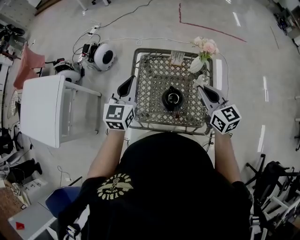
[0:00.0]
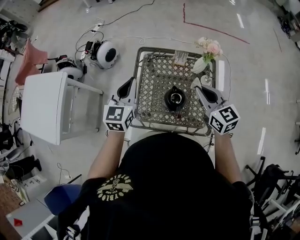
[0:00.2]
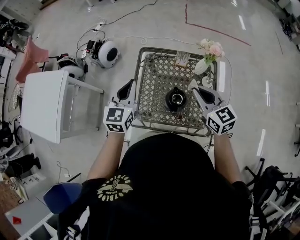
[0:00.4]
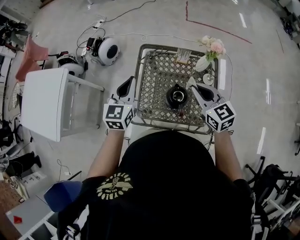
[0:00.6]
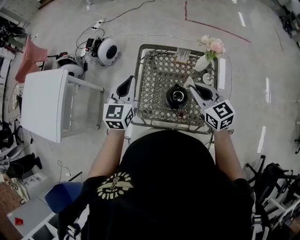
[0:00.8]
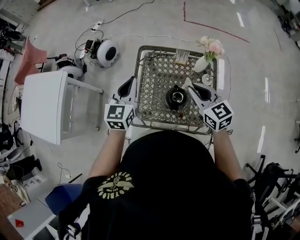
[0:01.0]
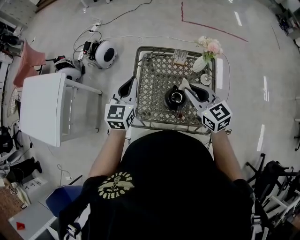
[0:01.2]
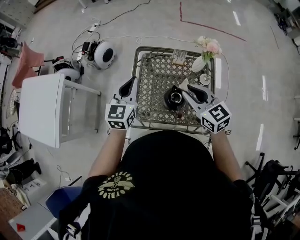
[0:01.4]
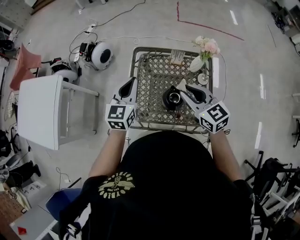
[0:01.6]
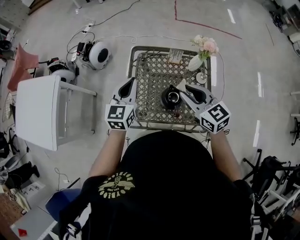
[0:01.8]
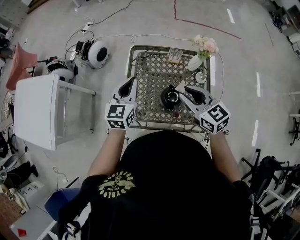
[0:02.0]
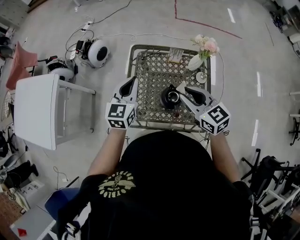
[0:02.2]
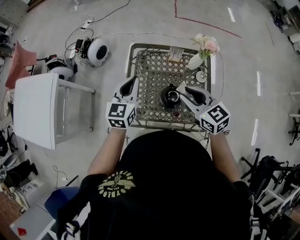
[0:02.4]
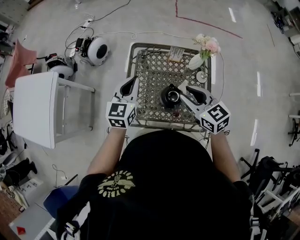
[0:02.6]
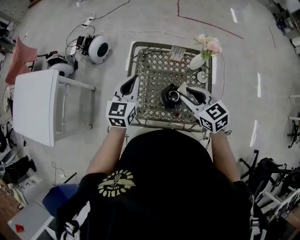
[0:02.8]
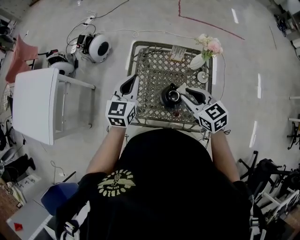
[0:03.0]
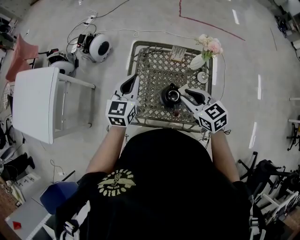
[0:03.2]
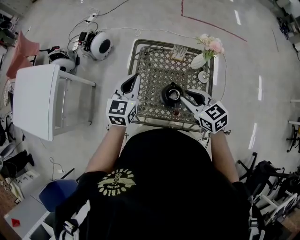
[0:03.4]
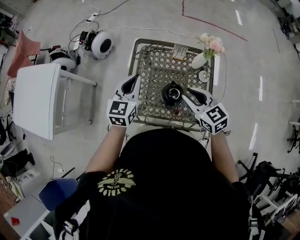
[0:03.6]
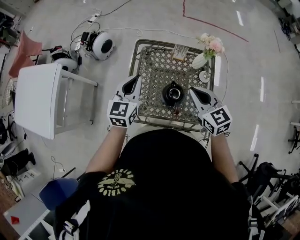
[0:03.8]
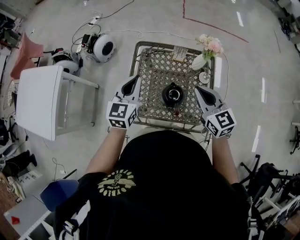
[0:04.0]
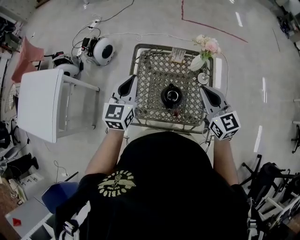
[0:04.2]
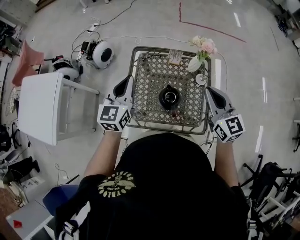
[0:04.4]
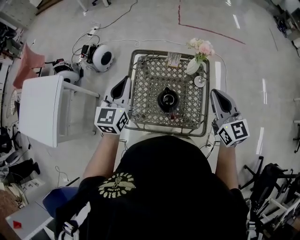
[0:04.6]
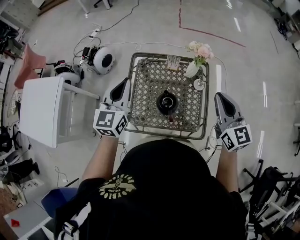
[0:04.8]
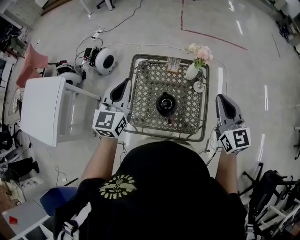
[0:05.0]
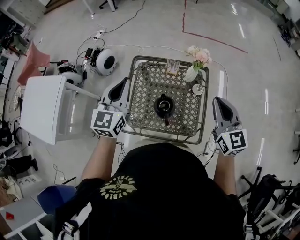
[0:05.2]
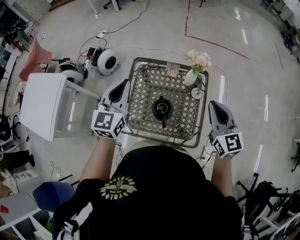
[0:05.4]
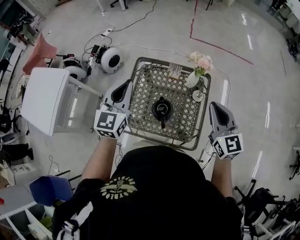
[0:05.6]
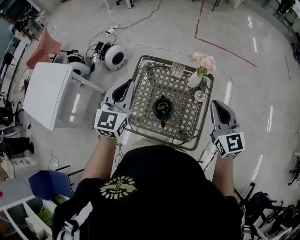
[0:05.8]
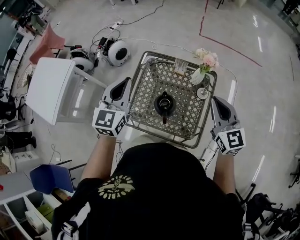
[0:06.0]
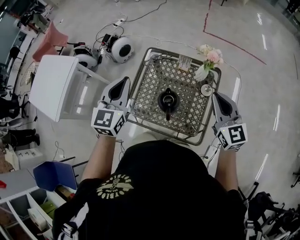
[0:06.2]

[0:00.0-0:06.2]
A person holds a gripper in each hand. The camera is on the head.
0:00.0 to 0:01.6: The right gripper is displaced to the left by some 10 cm.
0:01.6 to 0:03.2: The right gripper ends up roughly 5 cm from where it was.
0:03.2 to 0:04.6: The right gripper heads to the right and upward, covering approximately 15 cm, rotates roughly 30 degrees, and closes, while the left gripper travels upward by roughly 10 cm.
0:04.6 to 0:06.2: The left gripper ends up roughly 5 cm from where it was.

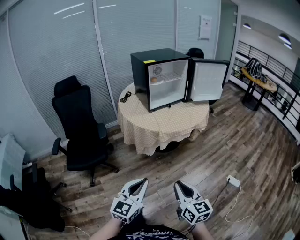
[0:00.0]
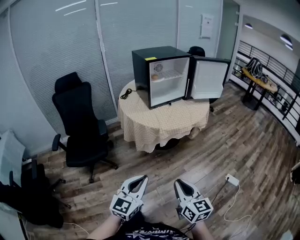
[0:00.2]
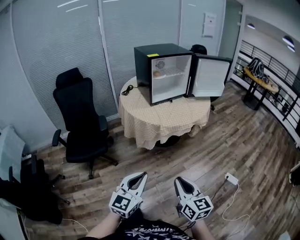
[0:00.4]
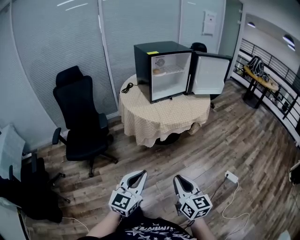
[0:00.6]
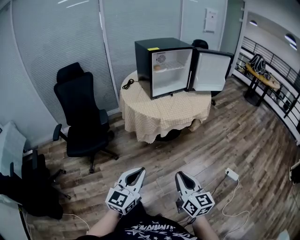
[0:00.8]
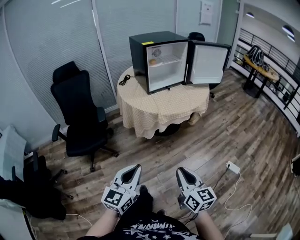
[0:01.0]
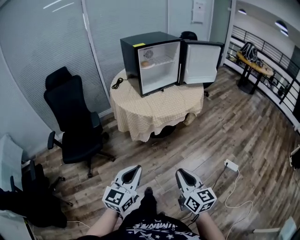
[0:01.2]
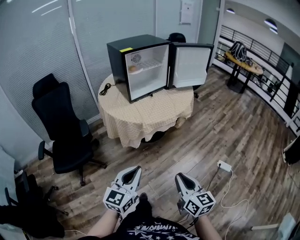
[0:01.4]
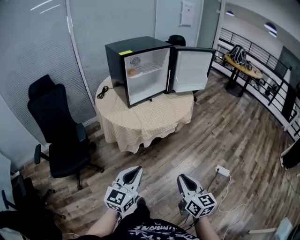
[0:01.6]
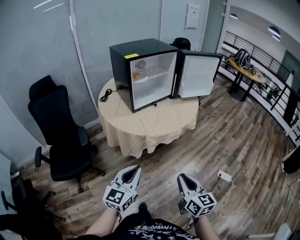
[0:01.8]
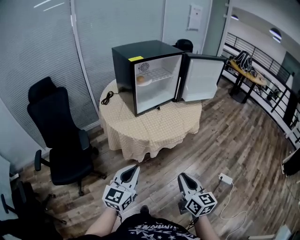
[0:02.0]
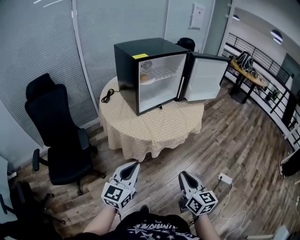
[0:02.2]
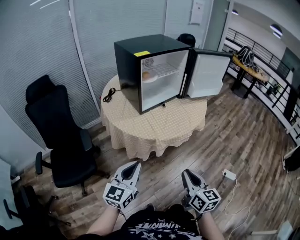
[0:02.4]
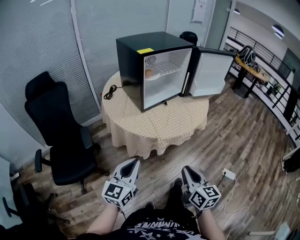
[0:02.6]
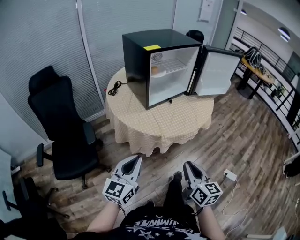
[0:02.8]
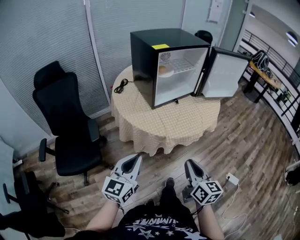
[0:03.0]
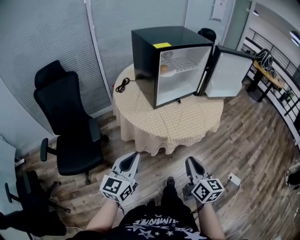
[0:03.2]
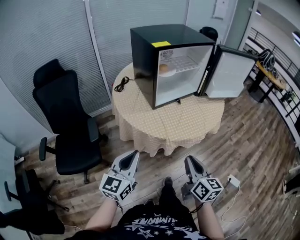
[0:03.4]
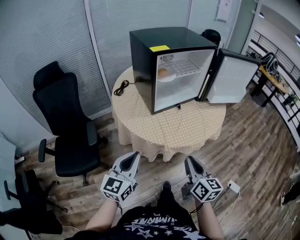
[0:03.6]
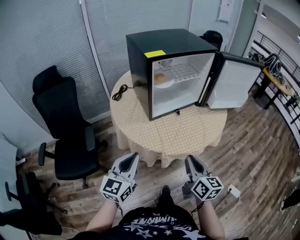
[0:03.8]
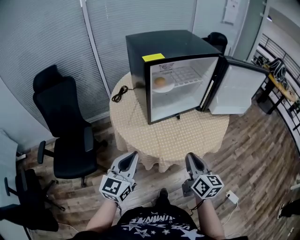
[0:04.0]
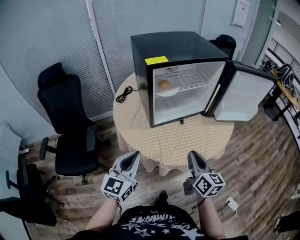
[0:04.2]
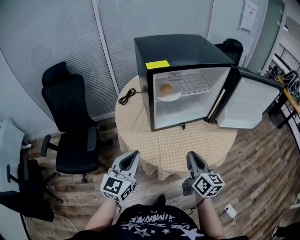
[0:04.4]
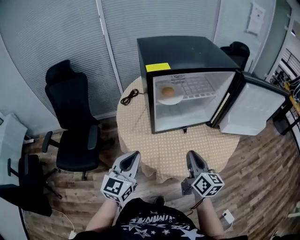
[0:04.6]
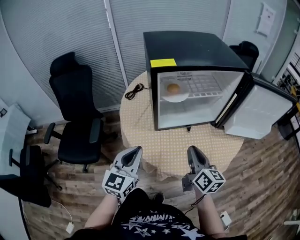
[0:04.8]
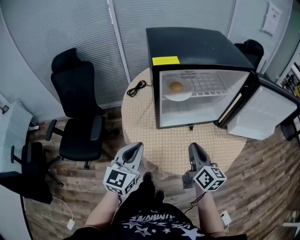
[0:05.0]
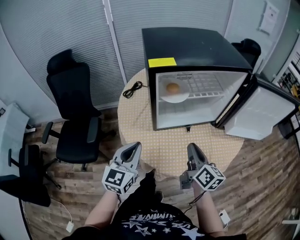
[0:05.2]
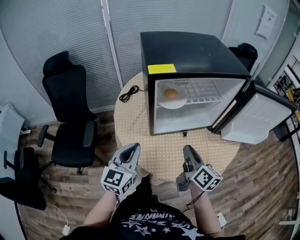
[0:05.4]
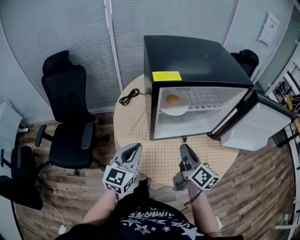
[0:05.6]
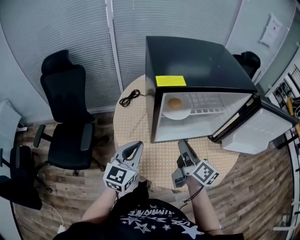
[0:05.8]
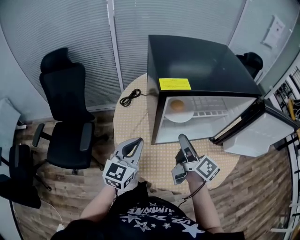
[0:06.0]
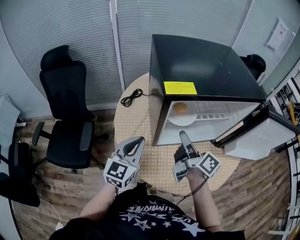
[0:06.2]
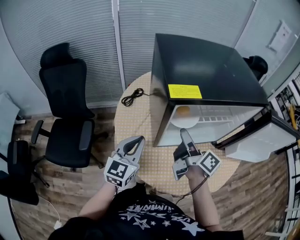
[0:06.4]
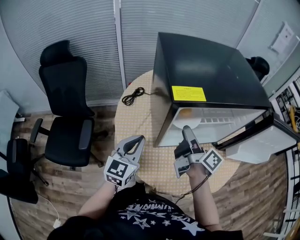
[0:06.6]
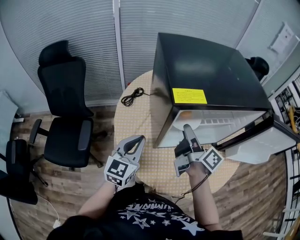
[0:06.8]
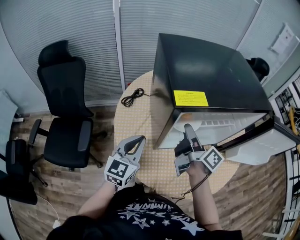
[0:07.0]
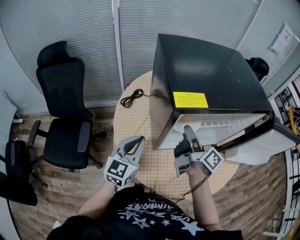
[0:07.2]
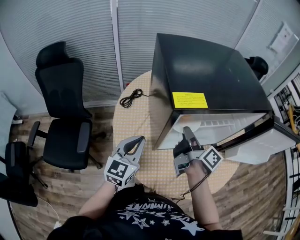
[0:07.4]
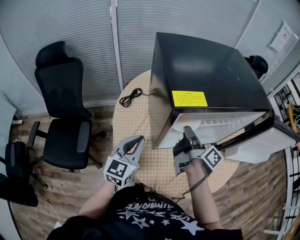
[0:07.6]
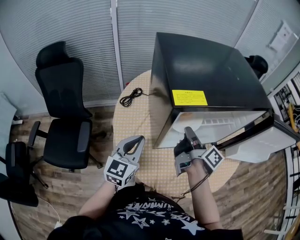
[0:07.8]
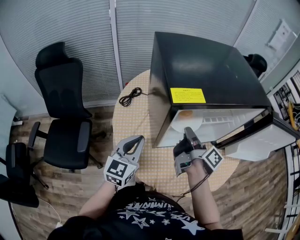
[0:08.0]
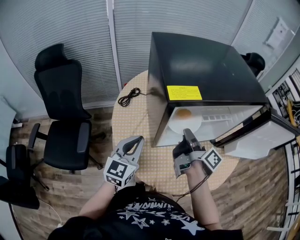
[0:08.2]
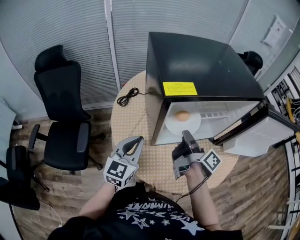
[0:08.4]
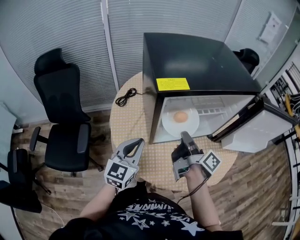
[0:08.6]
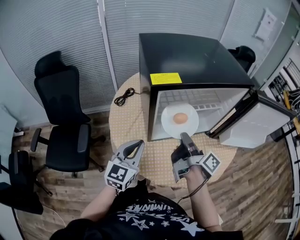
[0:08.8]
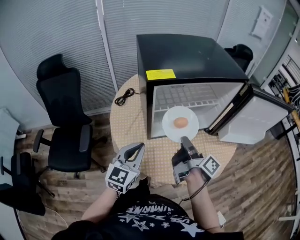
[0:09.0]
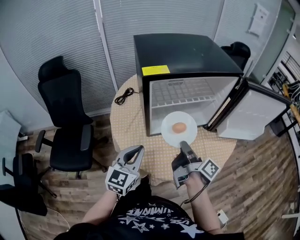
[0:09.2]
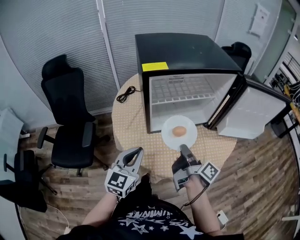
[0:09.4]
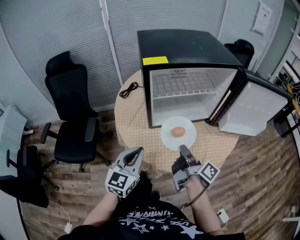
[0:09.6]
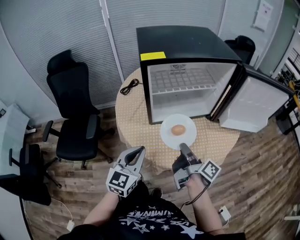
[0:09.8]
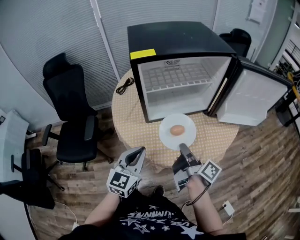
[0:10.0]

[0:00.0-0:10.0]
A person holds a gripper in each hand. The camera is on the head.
0:00.0 to 0:01.4: The left gripper heads forward, covering some 5 cm; the right gripper travels to the right by roughly 5 cm.
0:01.4 to 0:02.8: The grippers both shift forward and to the left by about 25 cm.
0:02.8 to 0:04.2: The grippers both shift forward by roughly 25 cm.
0:04.2 to 0:05.8: Both grippers move forward, approximately 20 cm. The right gripper swivels approximately 30 degrees.
0:05.8 to 0:07.2: Both grippers move forward, some 10 cm. The right gripper rotates about 20 degrees, and opens up.
0:07.2 to 0:08.6: The right gripper heads backward, covering some 5 cm, and closes up. The left gripper changes place by about 5 cm.
0:08.6 to 0:10.0: The right gripper is displaced backward by some 20 cm. Meanwhile the left gripper goes about 15 cm backward and to the right.

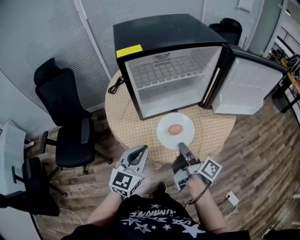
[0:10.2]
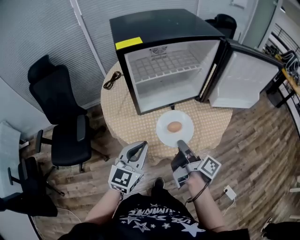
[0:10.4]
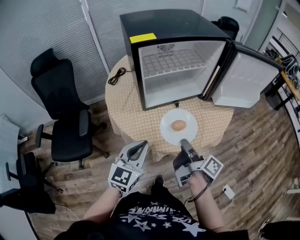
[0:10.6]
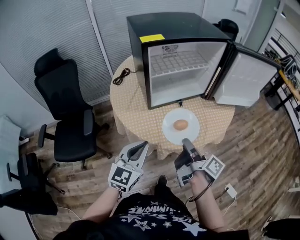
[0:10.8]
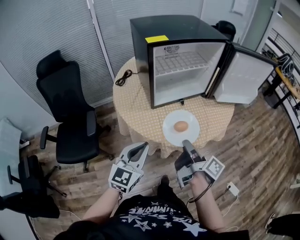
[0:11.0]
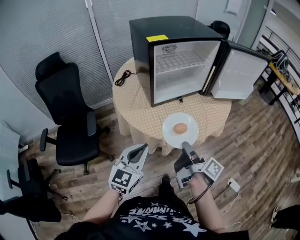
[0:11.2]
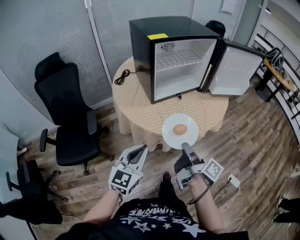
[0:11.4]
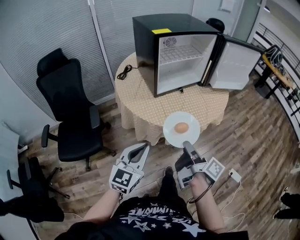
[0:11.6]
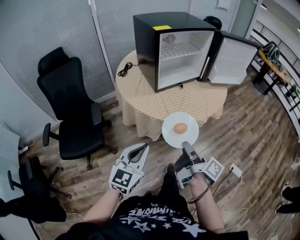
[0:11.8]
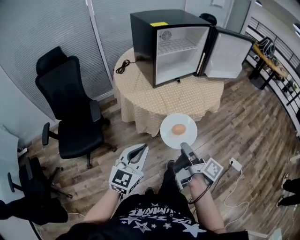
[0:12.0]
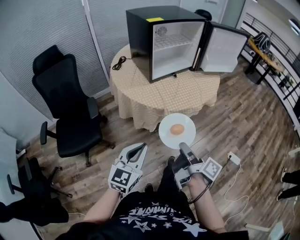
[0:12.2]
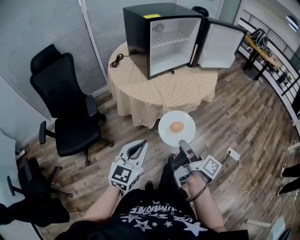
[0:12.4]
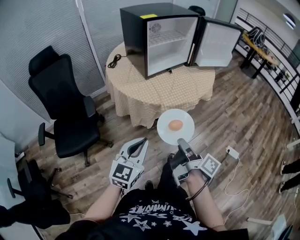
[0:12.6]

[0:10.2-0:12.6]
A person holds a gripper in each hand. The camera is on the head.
0:10.2 to 0:11.4: The two grippers go approximately 20 cm backward and to the left.
0:11.4 to 0:12.6: Both grippers move backward, some 15 cm.

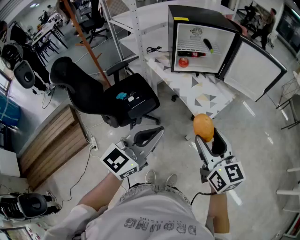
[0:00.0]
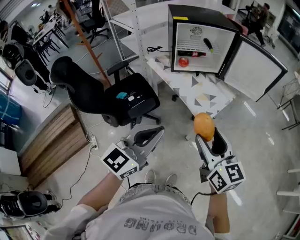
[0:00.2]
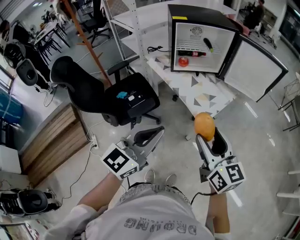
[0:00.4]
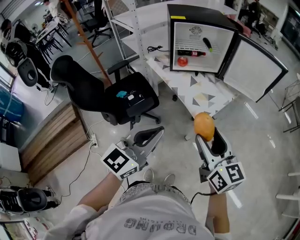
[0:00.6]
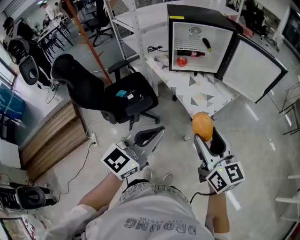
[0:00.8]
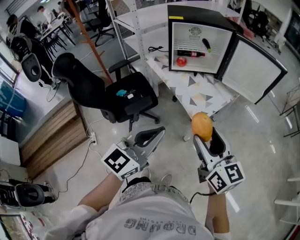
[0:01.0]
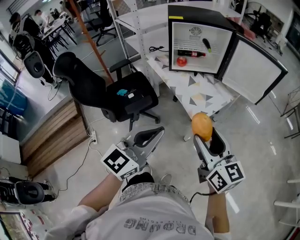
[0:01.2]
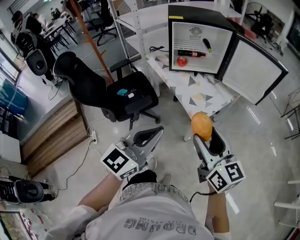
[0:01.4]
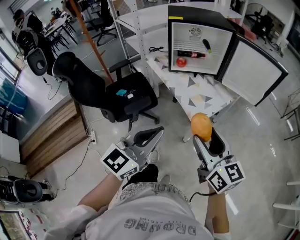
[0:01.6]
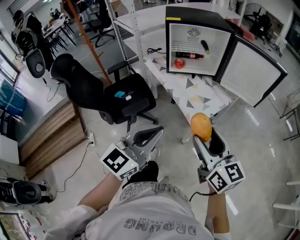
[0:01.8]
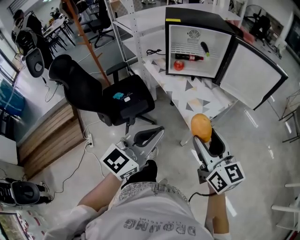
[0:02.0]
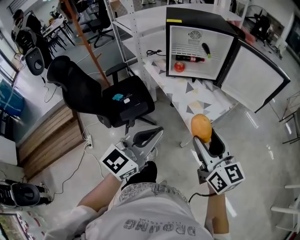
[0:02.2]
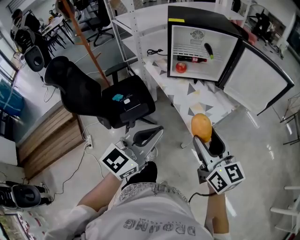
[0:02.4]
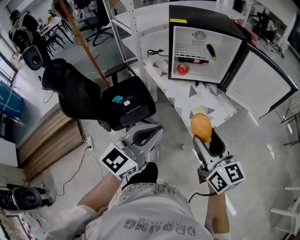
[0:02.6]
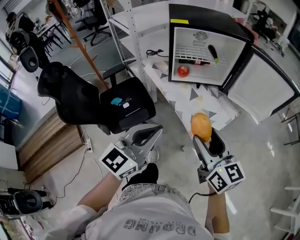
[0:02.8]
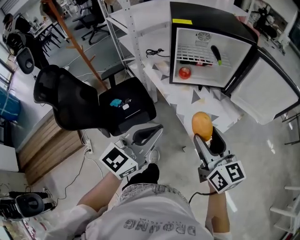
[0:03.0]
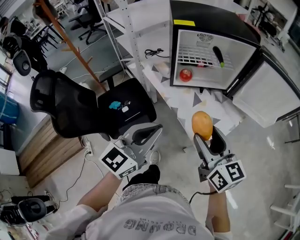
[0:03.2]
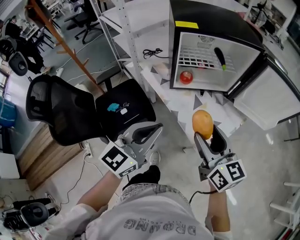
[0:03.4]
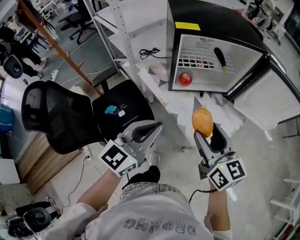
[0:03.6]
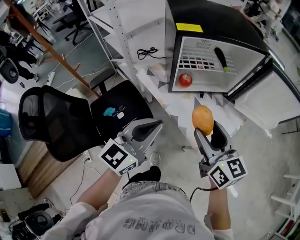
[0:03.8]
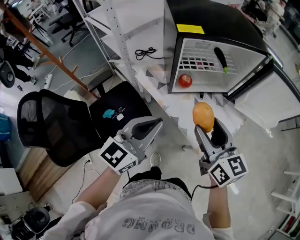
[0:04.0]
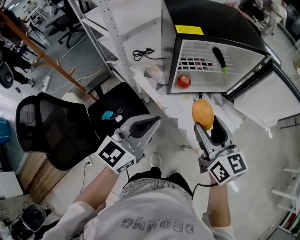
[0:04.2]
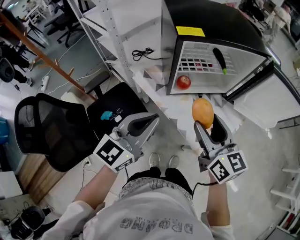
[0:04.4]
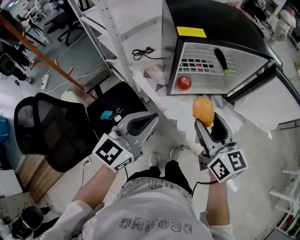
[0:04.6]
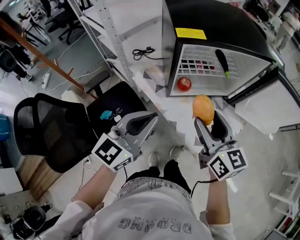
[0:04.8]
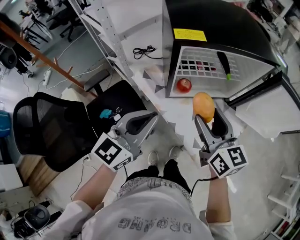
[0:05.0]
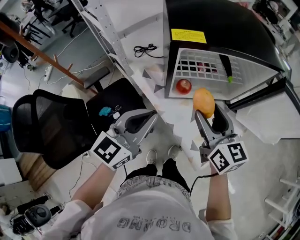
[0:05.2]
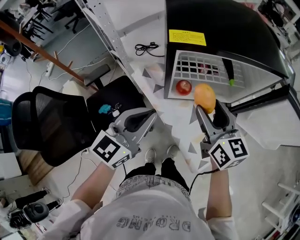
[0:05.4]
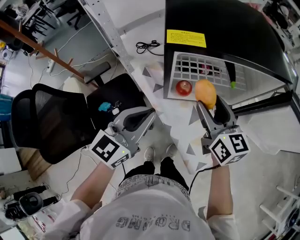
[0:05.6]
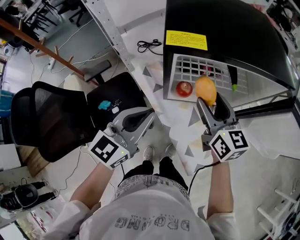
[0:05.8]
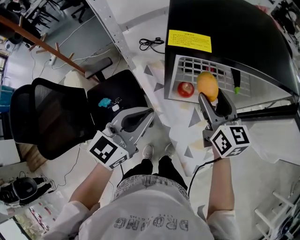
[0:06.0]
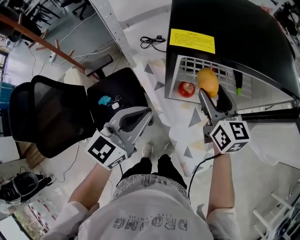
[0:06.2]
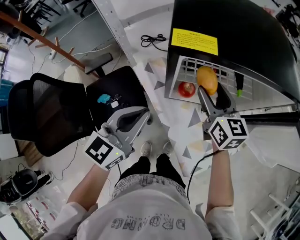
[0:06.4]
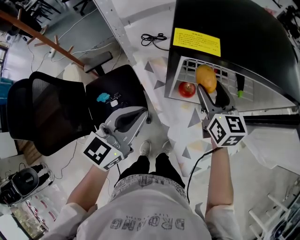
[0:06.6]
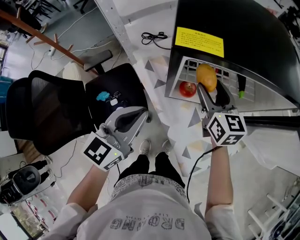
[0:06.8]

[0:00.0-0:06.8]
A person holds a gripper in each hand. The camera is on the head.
0:00.0 to 0:01.4: The two grippers go about 10 cm to the right.
0:01.4 to 0:02.8: The grippers both shift forward by approximately 15 cm.
0:02.8 to 0:04.0: Both grippers move forward and to the left, roughly 20 cm.
0:04.0 to 0:05.4: The two grippers go about 15 cm forward.
0:05.4 to 0:06.8: The right gripper heads forward and downward, covering some 15 cm.
